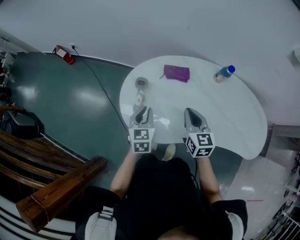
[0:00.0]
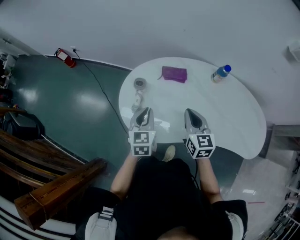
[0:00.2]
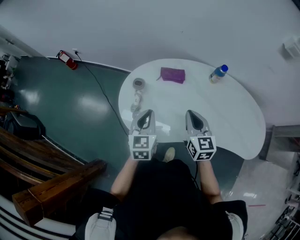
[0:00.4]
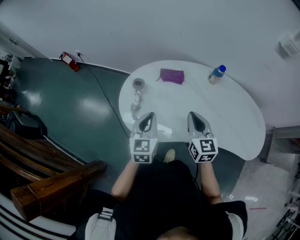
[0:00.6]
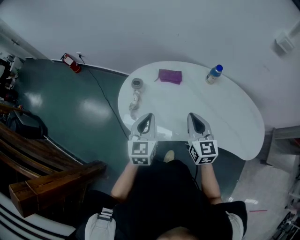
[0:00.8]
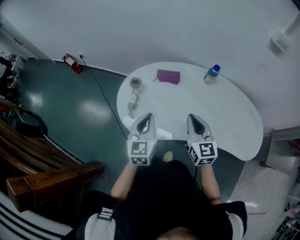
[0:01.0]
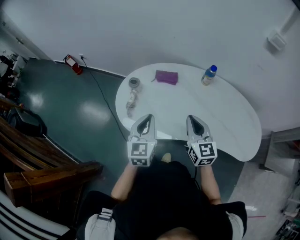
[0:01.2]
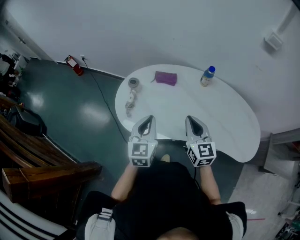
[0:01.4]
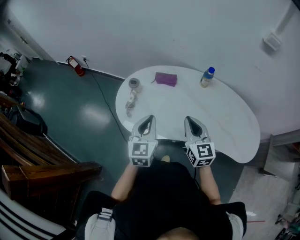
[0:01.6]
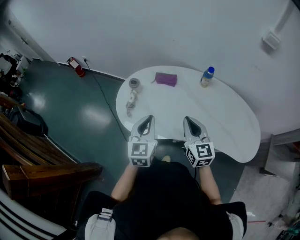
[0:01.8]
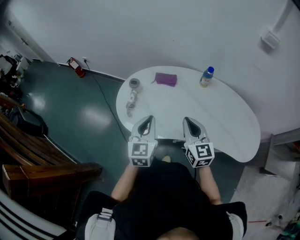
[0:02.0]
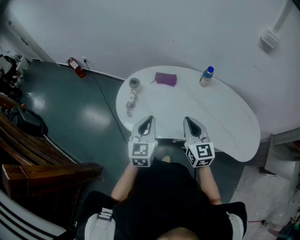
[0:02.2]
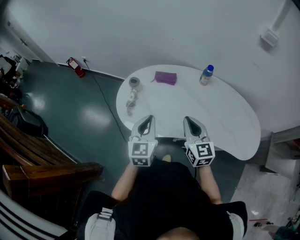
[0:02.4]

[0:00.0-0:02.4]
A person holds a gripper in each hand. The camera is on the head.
0:00.0 to 0:01.2: The right gripper heads backward, to the right and upward, covering some 15 cm. Meanwhile the left gripper is displaced backward, upward and to the right by approximately 20 cm.
0:01.2 to 0:02.4: There are only small adjustments of the grippers.

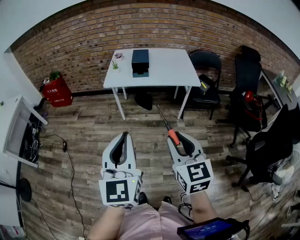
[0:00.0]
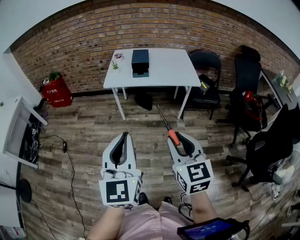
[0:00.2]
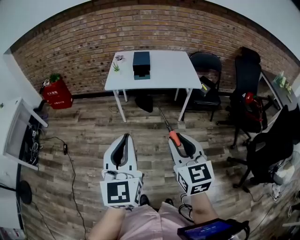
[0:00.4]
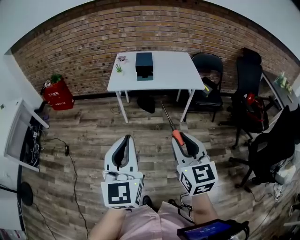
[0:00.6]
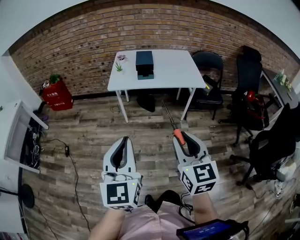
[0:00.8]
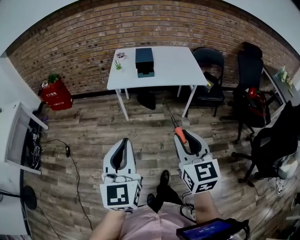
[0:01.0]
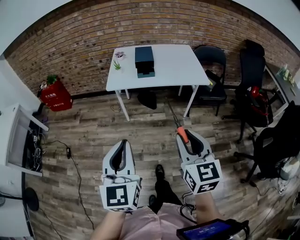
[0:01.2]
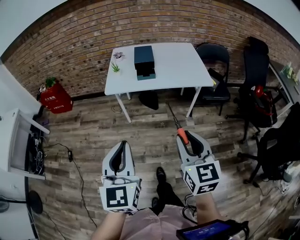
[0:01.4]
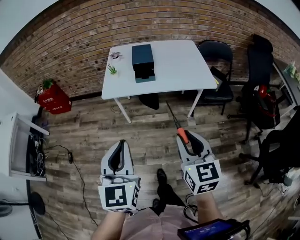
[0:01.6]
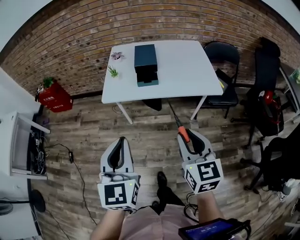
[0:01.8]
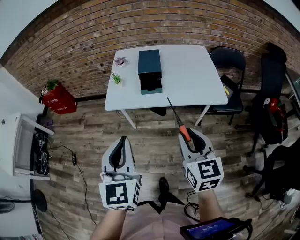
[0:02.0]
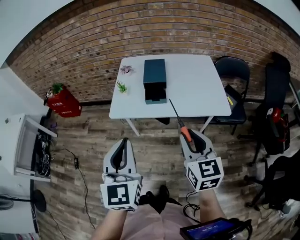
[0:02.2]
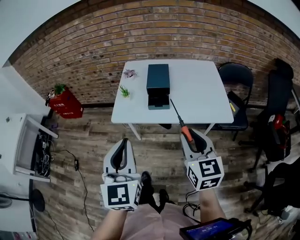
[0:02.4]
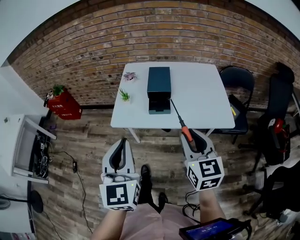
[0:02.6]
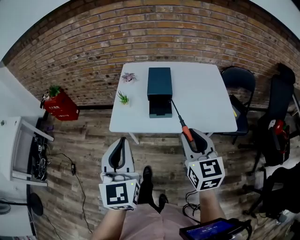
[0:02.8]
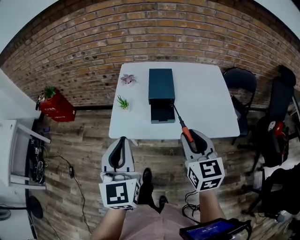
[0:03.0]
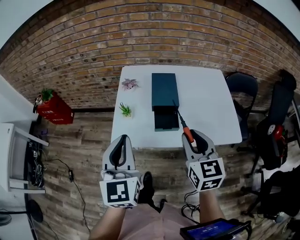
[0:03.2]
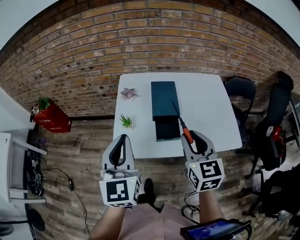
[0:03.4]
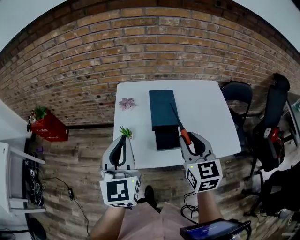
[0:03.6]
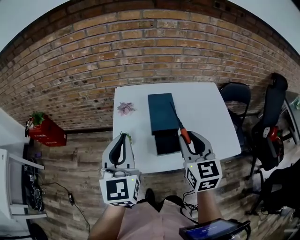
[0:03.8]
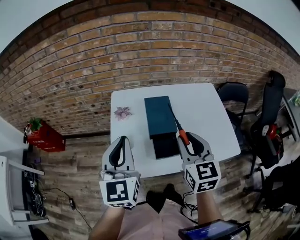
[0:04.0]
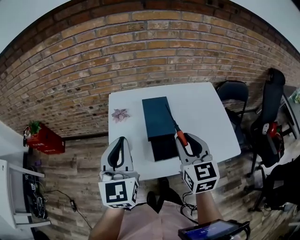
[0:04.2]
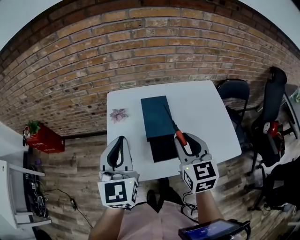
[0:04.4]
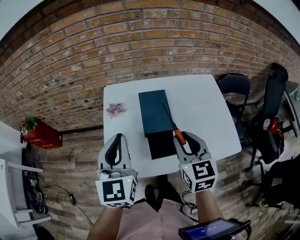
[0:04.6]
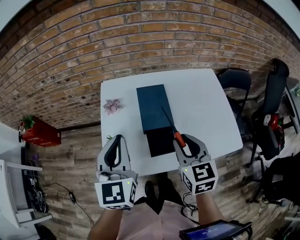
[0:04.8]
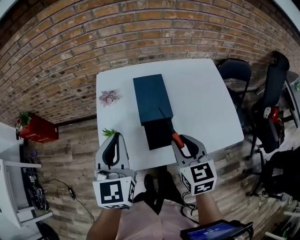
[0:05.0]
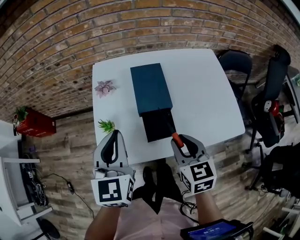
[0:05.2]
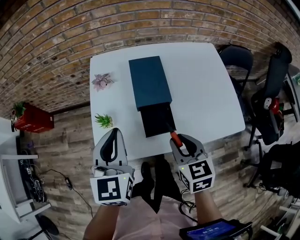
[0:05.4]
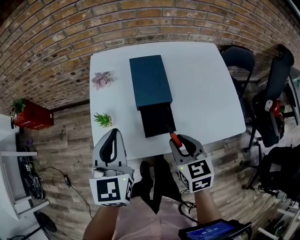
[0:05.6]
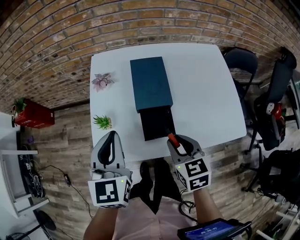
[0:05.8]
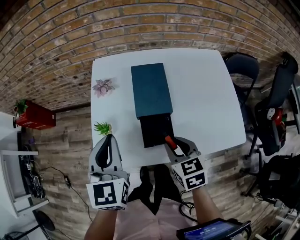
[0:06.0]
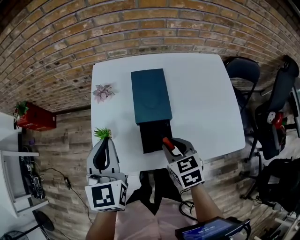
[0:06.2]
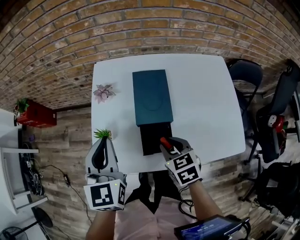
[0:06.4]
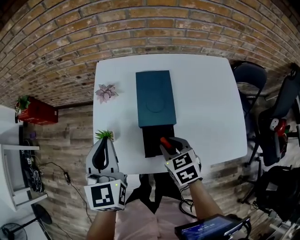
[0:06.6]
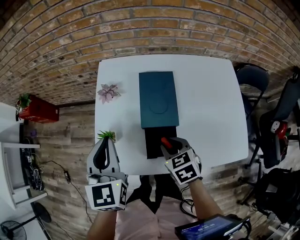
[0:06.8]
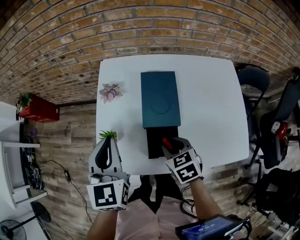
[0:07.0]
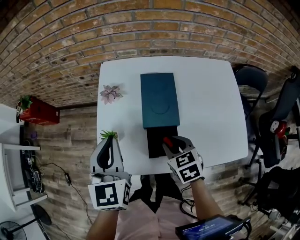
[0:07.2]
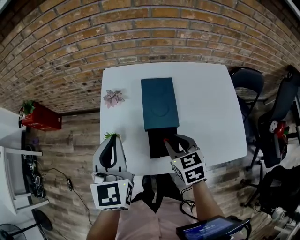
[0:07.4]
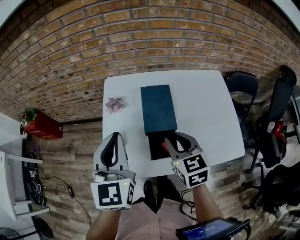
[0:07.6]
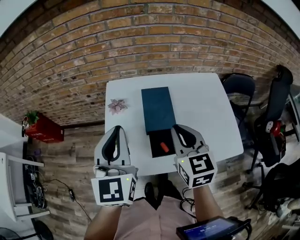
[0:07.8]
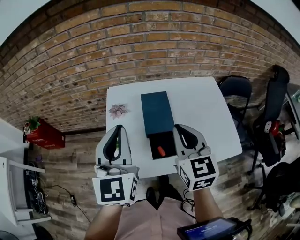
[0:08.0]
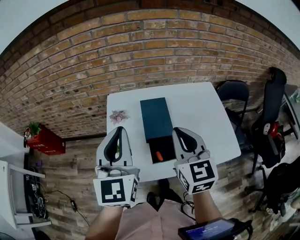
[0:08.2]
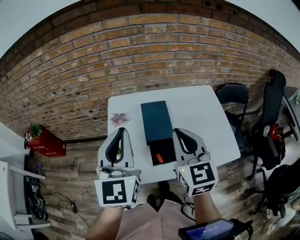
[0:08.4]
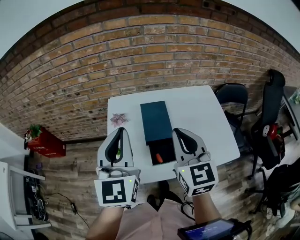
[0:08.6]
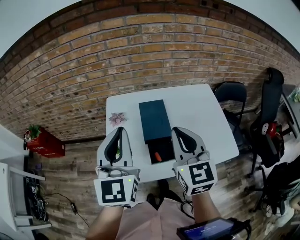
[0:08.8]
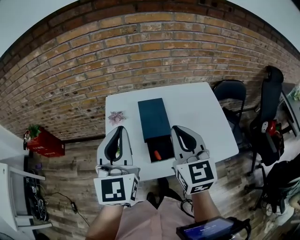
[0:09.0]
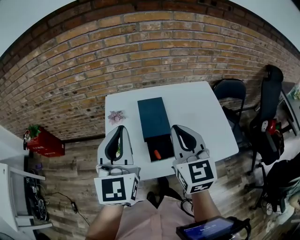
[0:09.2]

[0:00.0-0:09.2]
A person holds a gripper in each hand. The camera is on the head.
0:00.0 to 0:01.6: Both grippers travel together forward, approximately 20 cm.
0:01.6 to 0:03.0: Both grippers move forward, some 30 cm.
0:03.0 to 0:04.6: Both grippers travel together forward, roughly 20 cm.
0:04.6 to 0:06.2: The left gripper shifts roughly 10 cm downward, while the right gripper shifts approximately 15 cm downward, and turns by approximately 30 degrees.
0:06.2 to 0:07.6: The grippers both shift upward by some 10 cm.
0:07.6 to 0:09.2: The left gripper shifts some 10 cm upward. The right gripper is displaced upward by approximately 15 cm, turns by roughly 30 degrees, and closes up.

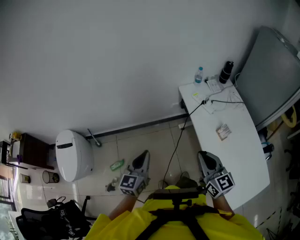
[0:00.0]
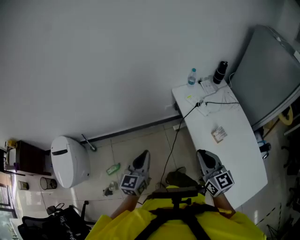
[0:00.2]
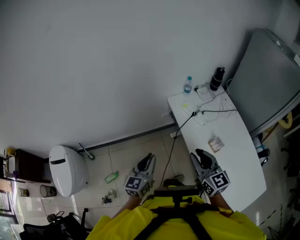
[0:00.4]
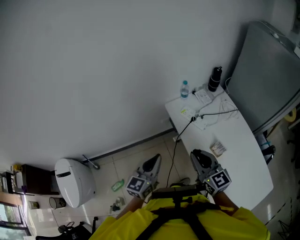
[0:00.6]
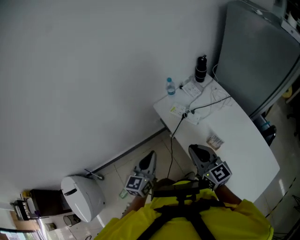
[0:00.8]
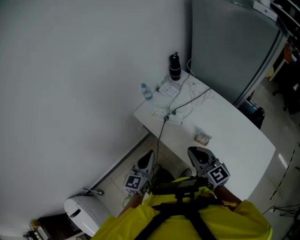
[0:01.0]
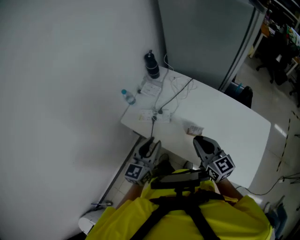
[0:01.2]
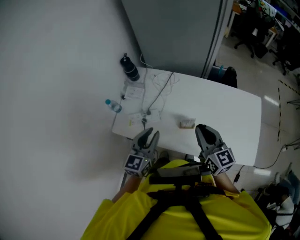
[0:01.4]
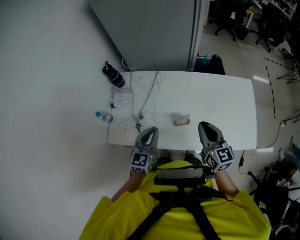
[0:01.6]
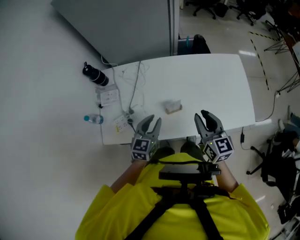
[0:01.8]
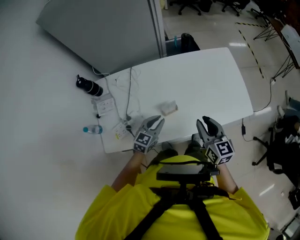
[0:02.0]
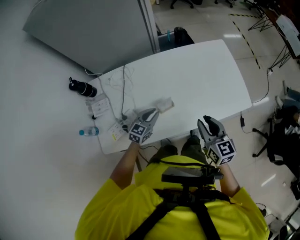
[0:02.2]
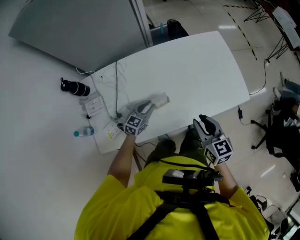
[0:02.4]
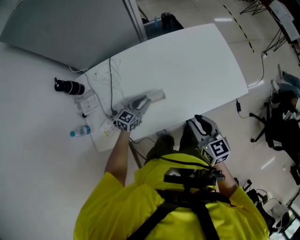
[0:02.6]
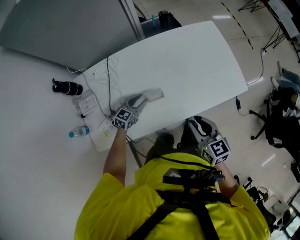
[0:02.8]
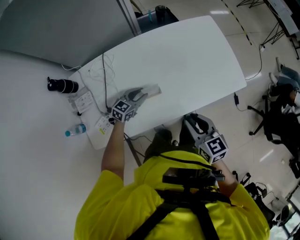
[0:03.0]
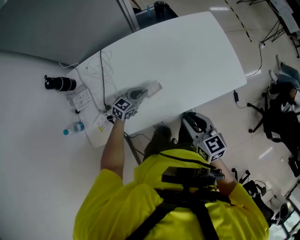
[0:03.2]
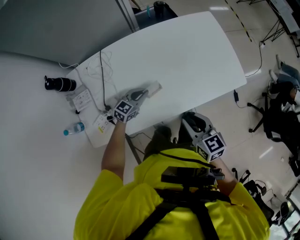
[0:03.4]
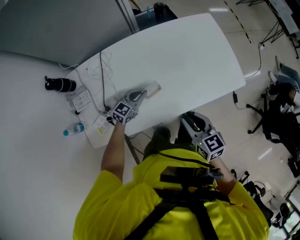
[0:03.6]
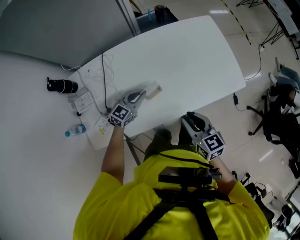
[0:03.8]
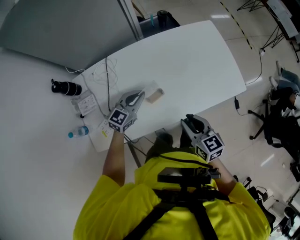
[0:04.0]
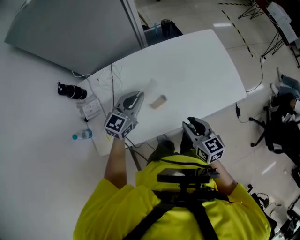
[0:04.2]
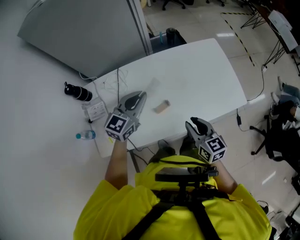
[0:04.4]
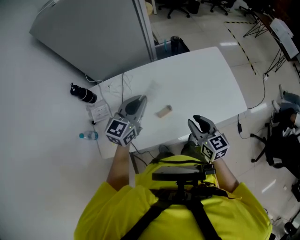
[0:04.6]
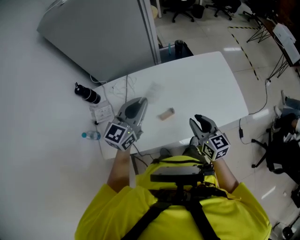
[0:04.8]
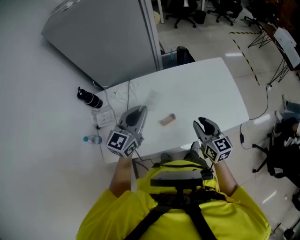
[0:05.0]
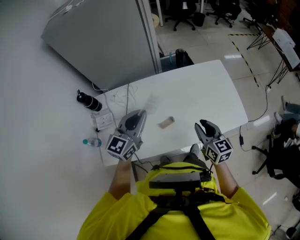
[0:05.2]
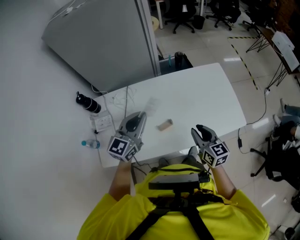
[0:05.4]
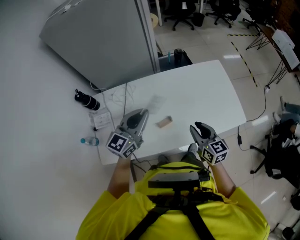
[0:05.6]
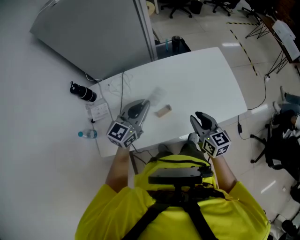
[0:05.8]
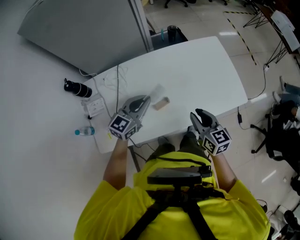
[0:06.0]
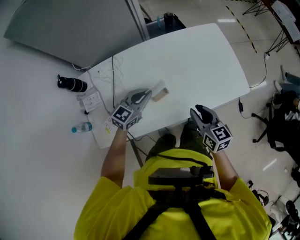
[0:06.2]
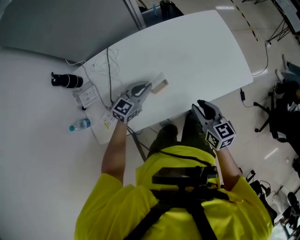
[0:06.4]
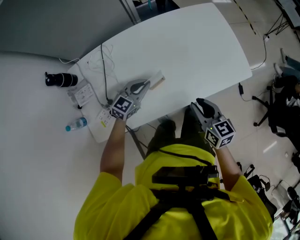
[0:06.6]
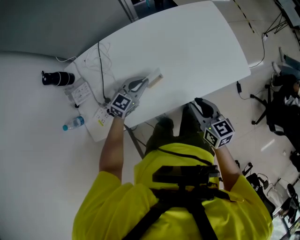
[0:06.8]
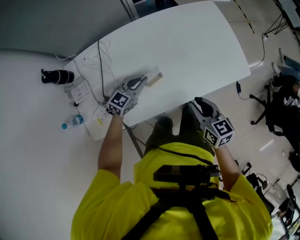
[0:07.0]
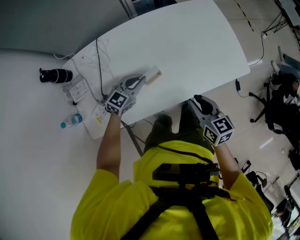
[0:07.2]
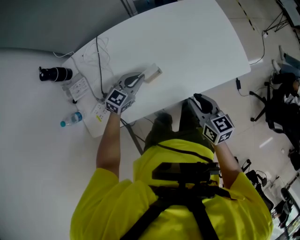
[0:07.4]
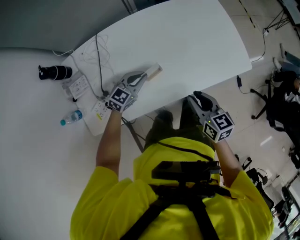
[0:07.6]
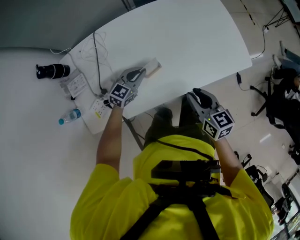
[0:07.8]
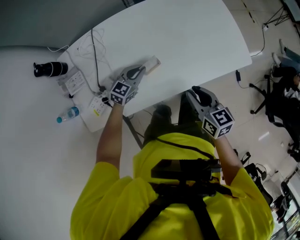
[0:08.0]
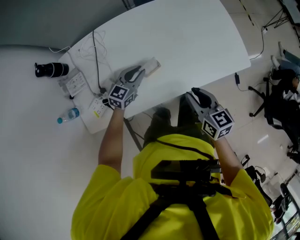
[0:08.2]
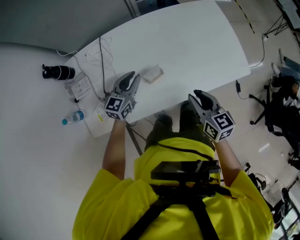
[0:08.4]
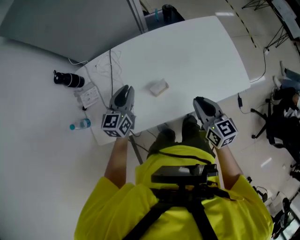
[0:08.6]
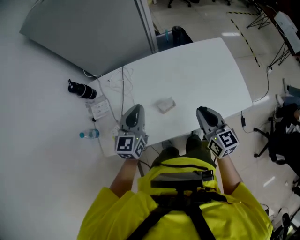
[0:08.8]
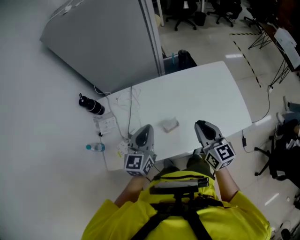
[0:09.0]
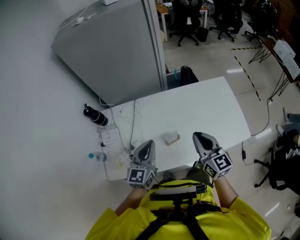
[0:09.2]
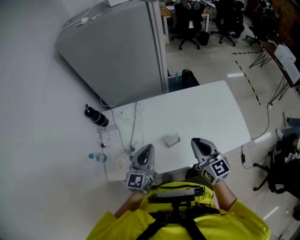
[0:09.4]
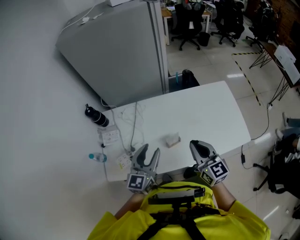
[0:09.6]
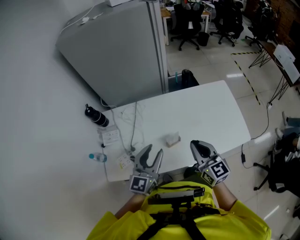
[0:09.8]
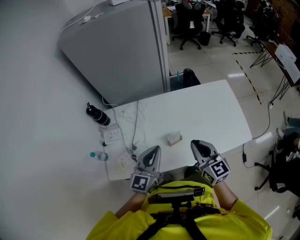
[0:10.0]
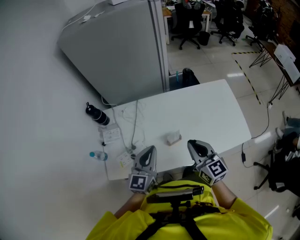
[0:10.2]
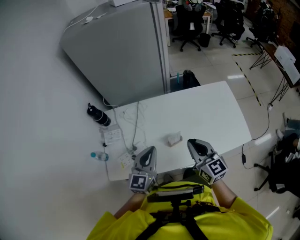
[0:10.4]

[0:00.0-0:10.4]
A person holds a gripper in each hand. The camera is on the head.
0:00.0 to 0:01.4: The right gripper moves roughly 30 cm, and swivels some 60 degrees. The left gripper shifts by roughly 50 cm, turns by about 60 degrees, and opens.
0:01.4 to 0:03.0: The right gripper heads downward, covering approximately 15 cm, and changes its angle by some 30 degrees, while the left gripper is displaced downward by approximately 25 cm, and turns by approximately 60 degrees.
0:03.0 to 0:04.4: The left gripper moves upward, some 25 cm, changes its angle by some 20 degrees, and closes up.
0:04.4 to 0:06.0: The left gripper moves approximately 5 cm.
0:06.0 to 0:07.4: The right gripper is displaced downward by about 5 cm. The left gripper goes about 15 cm downward.
0:07.4 to 0:09.0: The left gripper is displaced upward by approximately 20 cm, and changes its angle by about 40 degrees. The right gripper shifts about 15 cm upward and forward, and rotates about 20 degrees.
0:09.0 to 0:10.4: The right gripper moves to the left, roughly 5 cm. The left gripper goes about 5 cm backward, and opens and closes again.

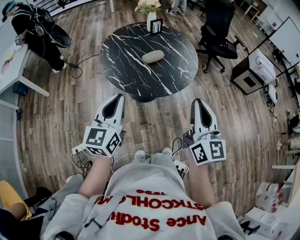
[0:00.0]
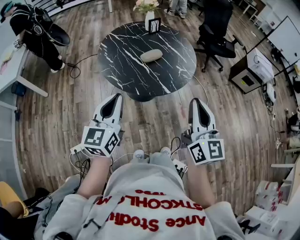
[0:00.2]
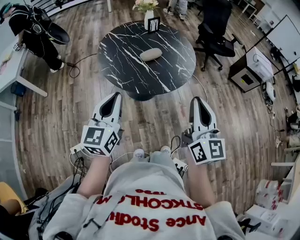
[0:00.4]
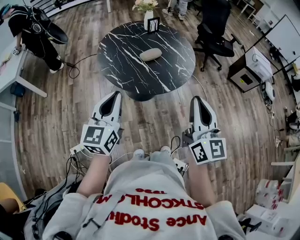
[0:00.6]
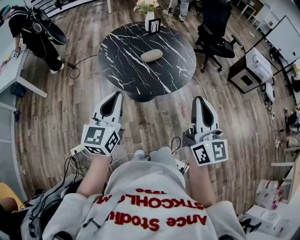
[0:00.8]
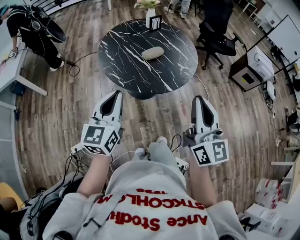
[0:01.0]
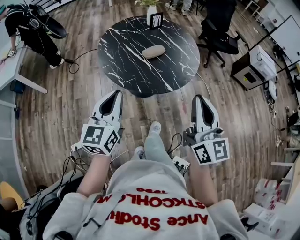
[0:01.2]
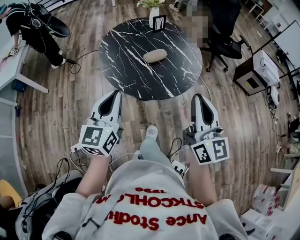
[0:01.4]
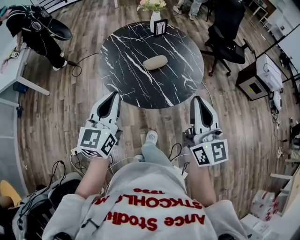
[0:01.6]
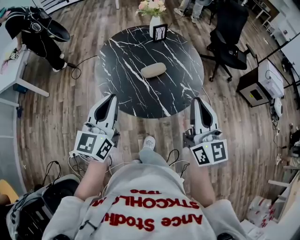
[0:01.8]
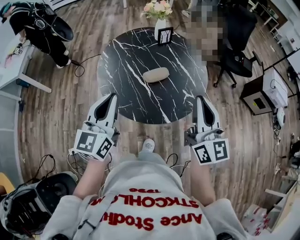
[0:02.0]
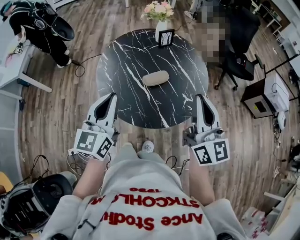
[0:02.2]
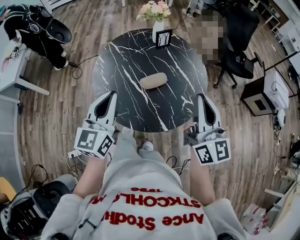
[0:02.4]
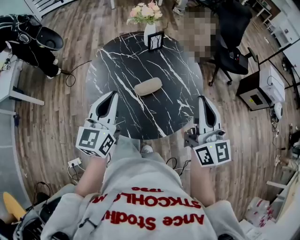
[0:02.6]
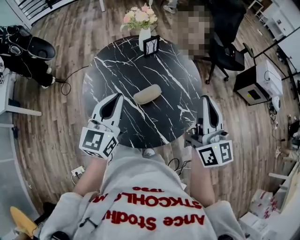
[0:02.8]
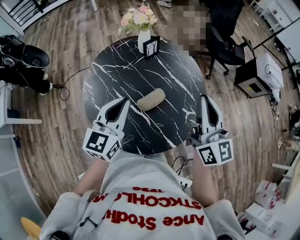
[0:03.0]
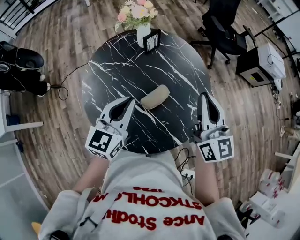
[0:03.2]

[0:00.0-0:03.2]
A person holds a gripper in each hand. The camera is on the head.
0:00.0 to 0:01.6: The two grippers go roughly 10 cm forward.
0:01.6 to 0:03.2: Both grippers travel together forward, approximately 35 cm. The left gripper changes its angle by about 30 degrees.
